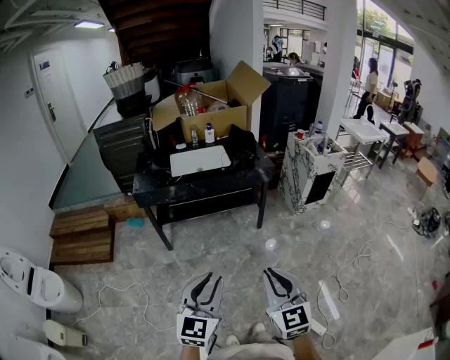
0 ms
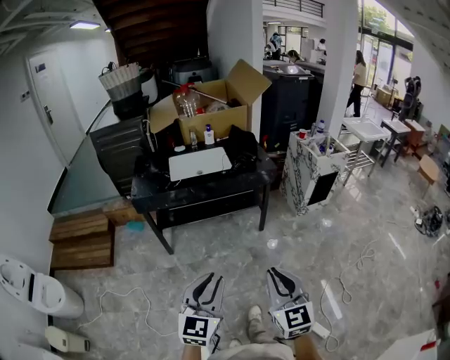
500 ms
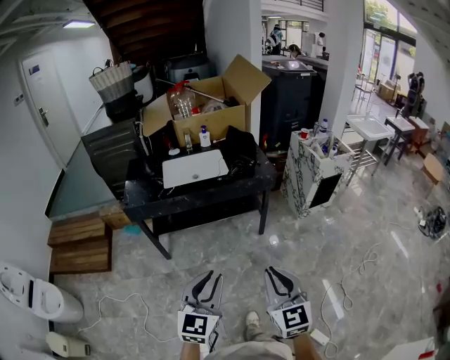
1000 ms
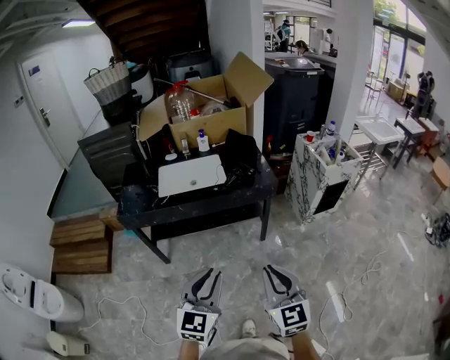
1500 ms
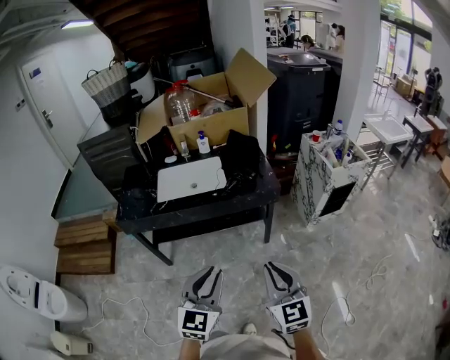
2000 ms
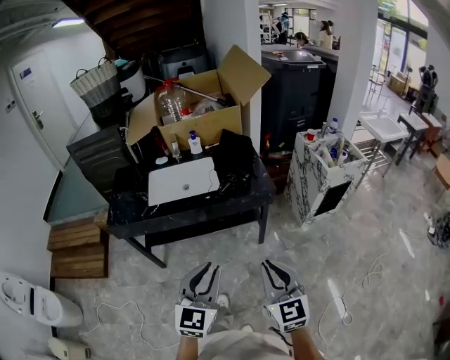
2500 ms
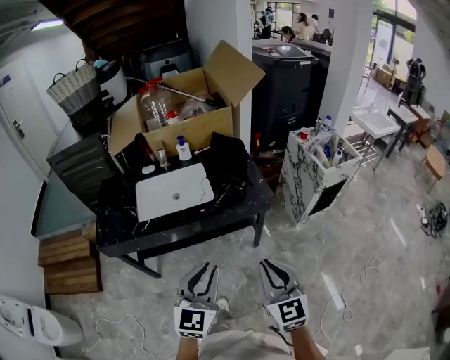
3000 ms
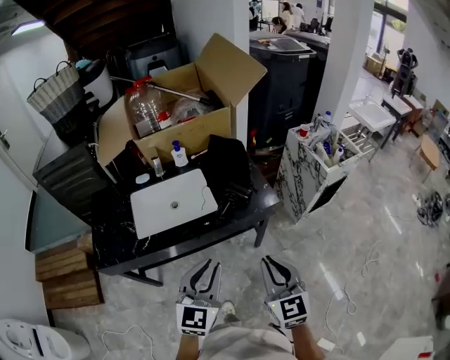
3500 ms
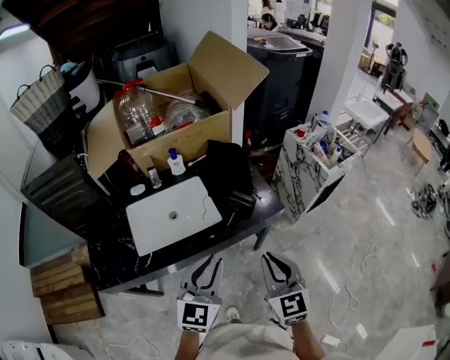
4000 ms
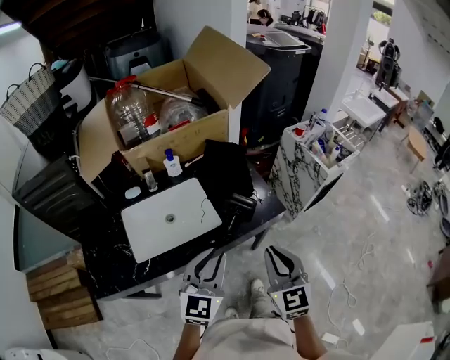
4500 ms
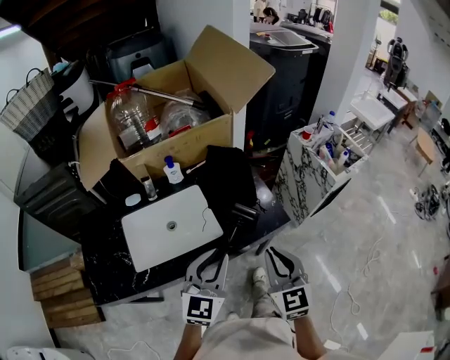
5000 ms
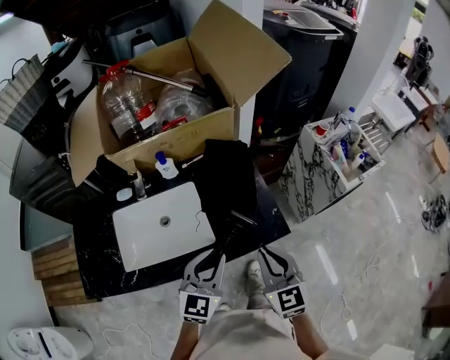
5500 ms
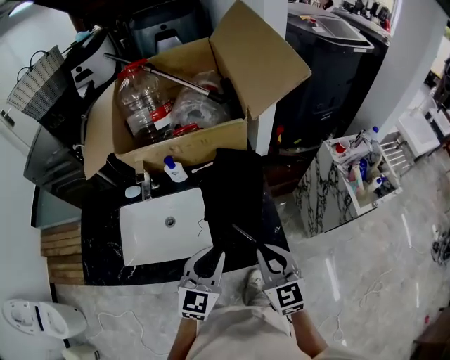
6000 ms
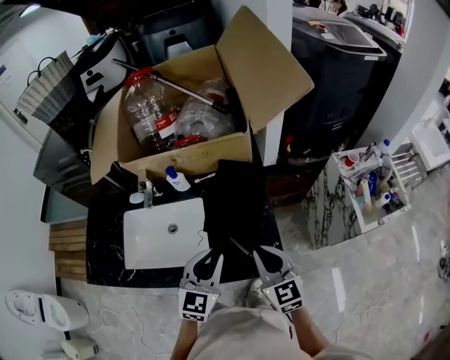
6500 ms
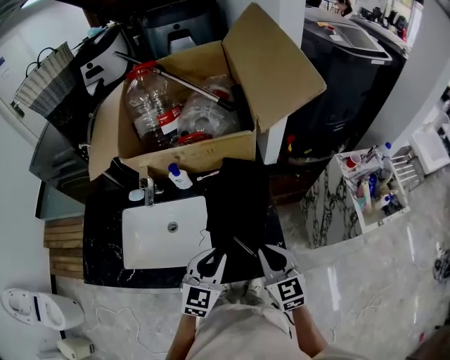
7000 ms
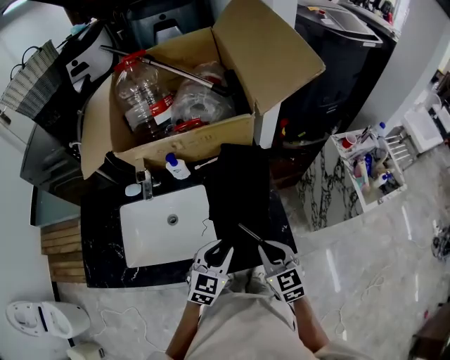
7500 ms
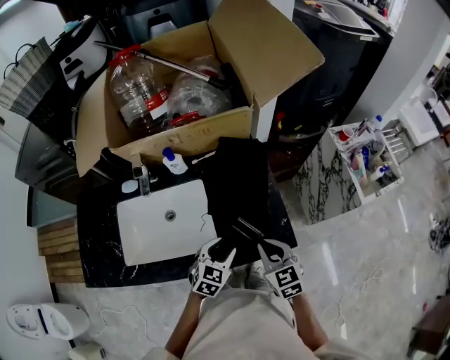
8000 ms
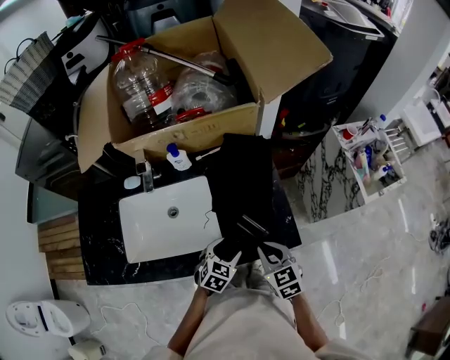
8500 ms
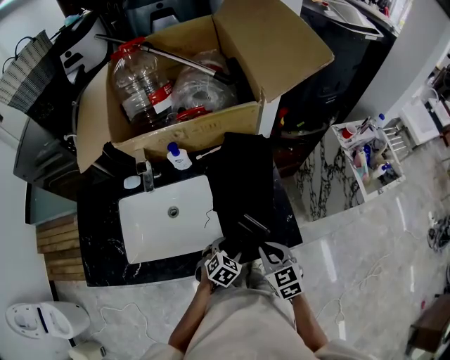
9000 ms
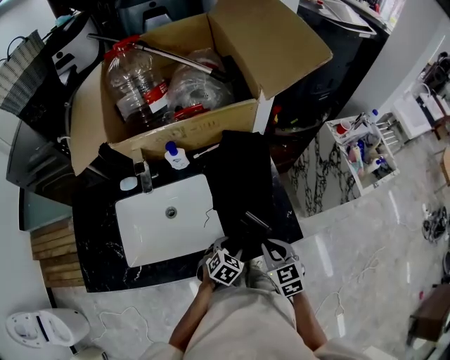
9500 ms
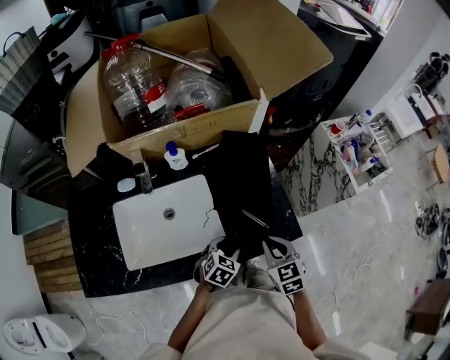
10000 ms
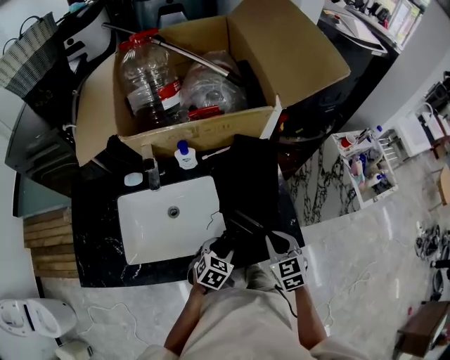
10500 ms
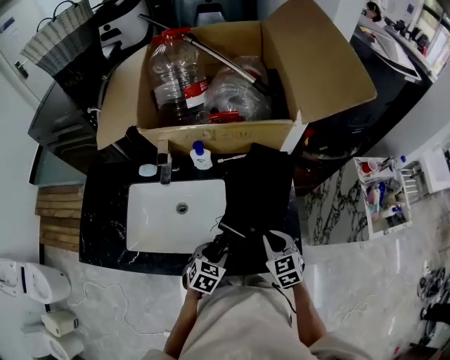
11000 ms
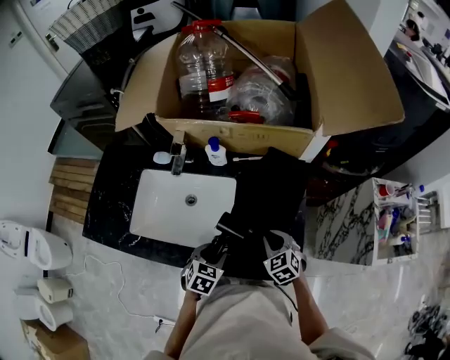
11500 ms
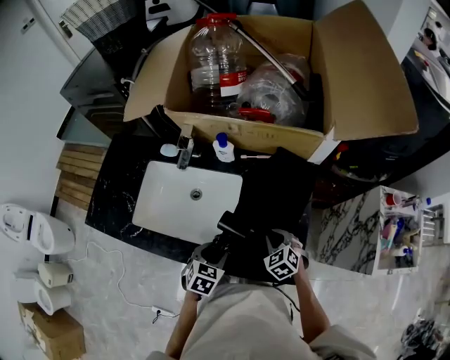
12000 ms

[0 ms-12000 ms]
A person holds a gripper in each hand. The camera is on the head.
0 ms to 2000 ms: The two grippers go roughly 30 cm forward.
2000 ms to 4000 ms: Both grippers move forward, about 30 cm.
4000 ms to 6000 ms: Both grippers move forward, about 25 cm.
6000 ms to 8000 ms: The right gripper travels downward by roughly 10 cm; the left gripper shifts some 15 cm downward, rotates some 30 degrees, and opens.
8000 ms to 10000 ms: The left gripper is displaced downward by some 5 cm.
10000 ms to 12000 ms: The right gripper ends up roughly 15 cm from where it was, and swivels approximately 50 degrees; the left gripper changes its angle by approximately 40 degrees.

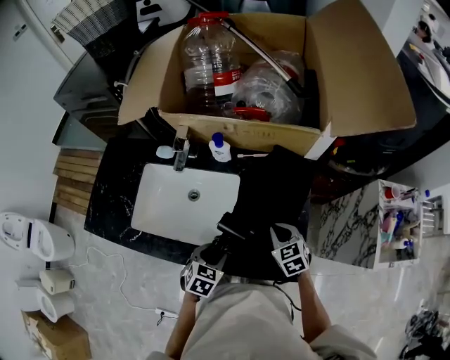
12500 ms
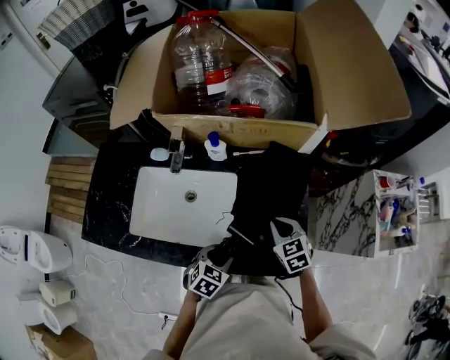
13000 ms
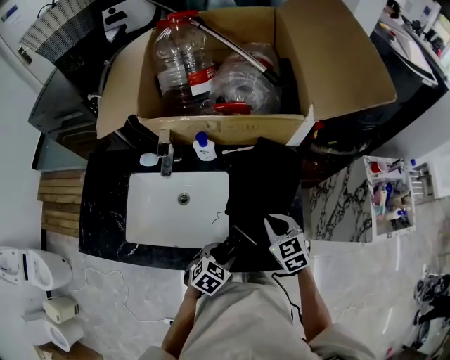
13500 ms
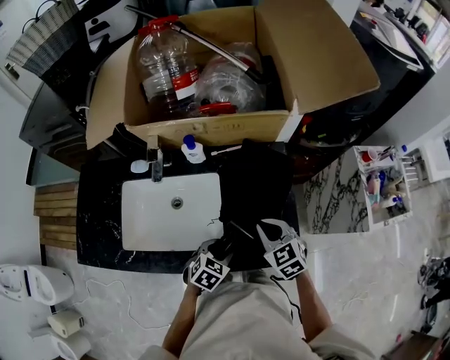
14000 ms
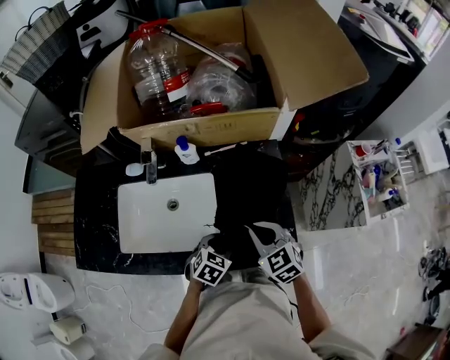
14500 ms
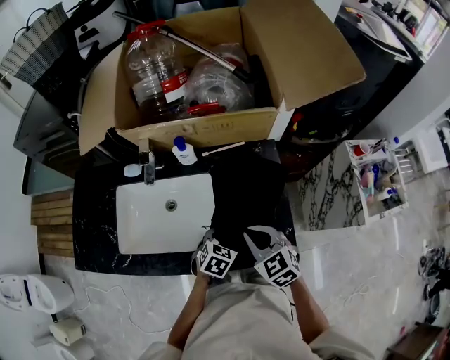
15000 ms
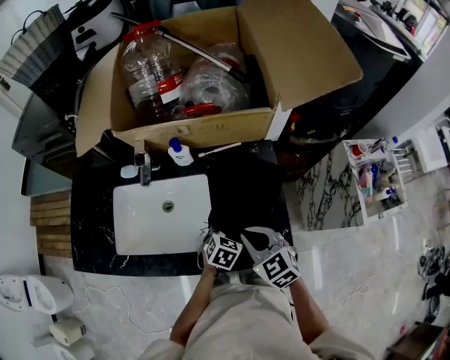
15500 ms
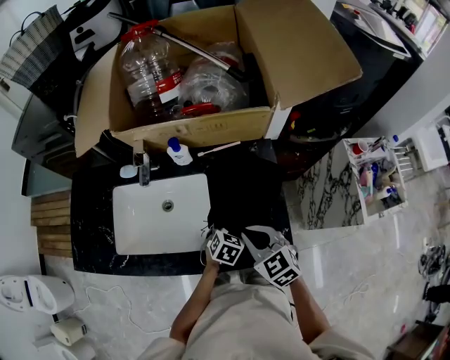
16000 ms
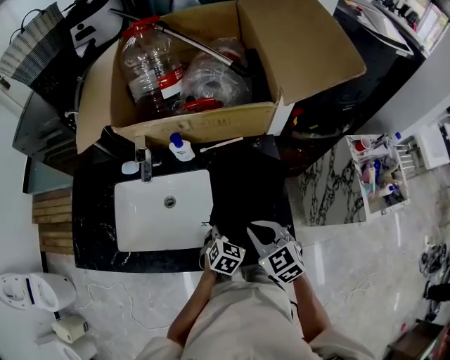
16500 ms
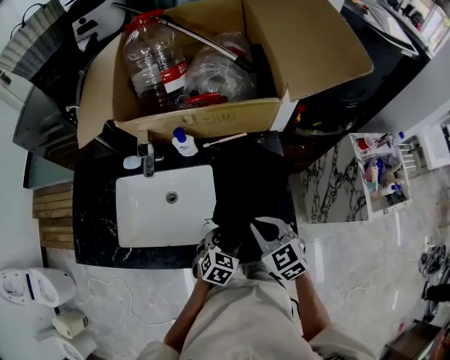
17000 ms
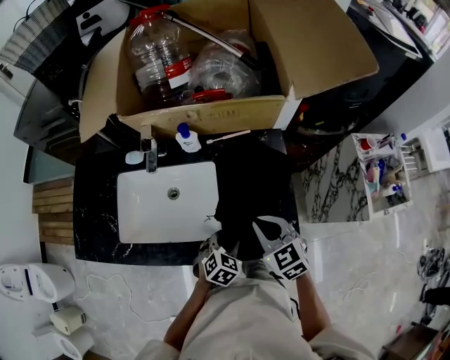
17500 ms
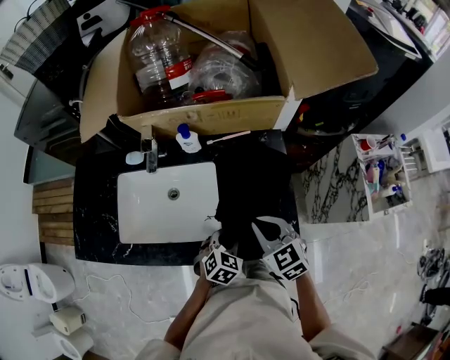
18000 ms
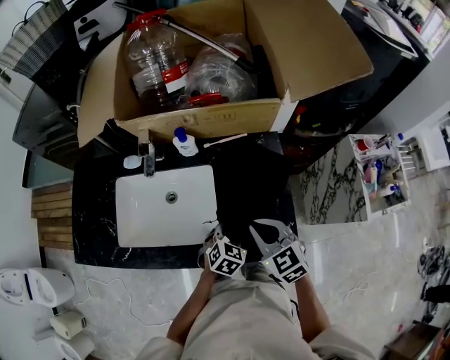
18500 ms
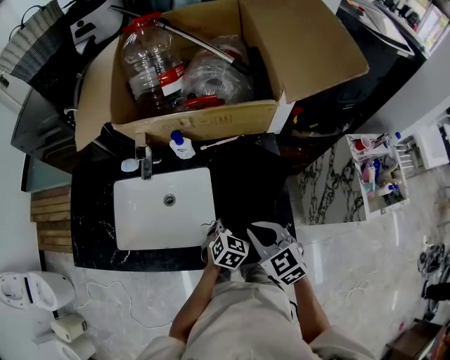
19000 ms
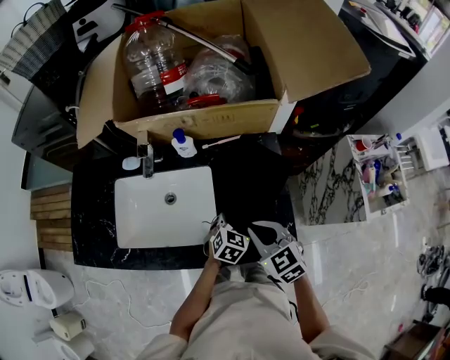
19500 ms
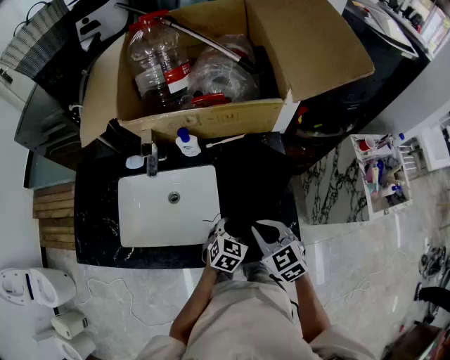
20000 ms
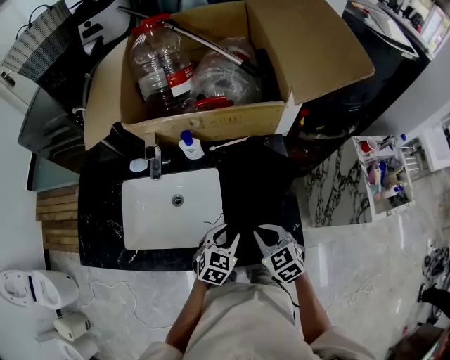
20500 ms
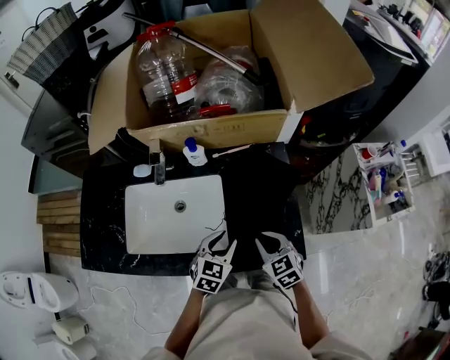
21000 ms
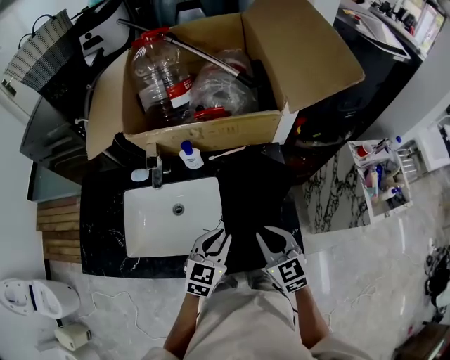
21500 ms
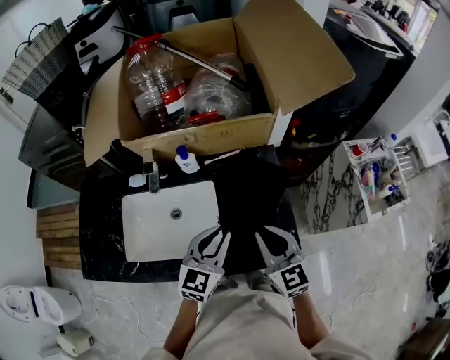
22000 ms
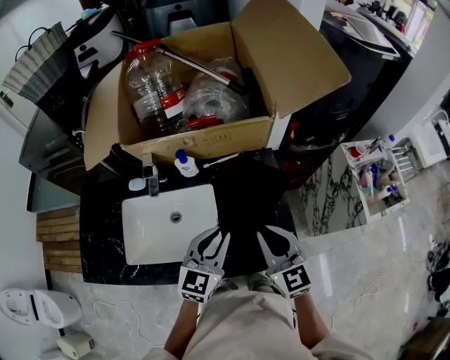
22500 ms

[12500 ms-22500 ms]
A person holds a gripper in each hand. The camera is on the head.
12500 ms to 14500 ms: The right gripper shifts approximately 10 cm upward and backward; the left gripper shifts by roughly 5 cm, and turns by about 20 degrees.
14500 ms to 16500 ms: The left gripper moves to the right, approximately 5 cm.
16500 ms to 18500 ms: The left gripper closes up.
18500 ms to 20500 ms: The right gripper shifts approximately 5 cm downward.
20500 ms to 22500 ms: The two grippers go some 15 cm upward. The right gripper points its fingers roughly 30 degrees further upward; the left gripper turns by about 30 degrees.

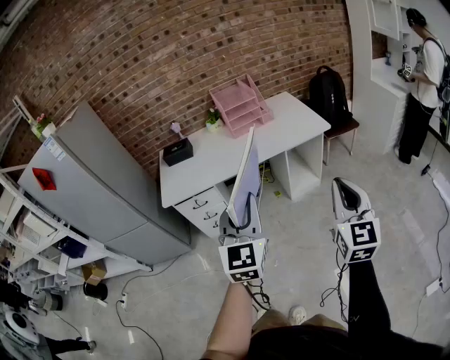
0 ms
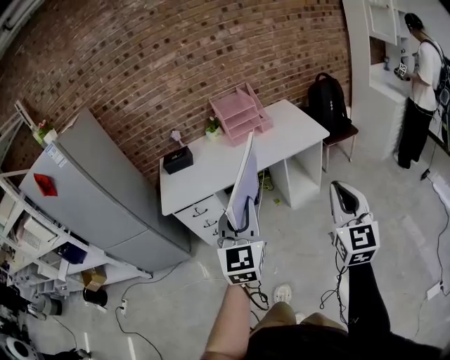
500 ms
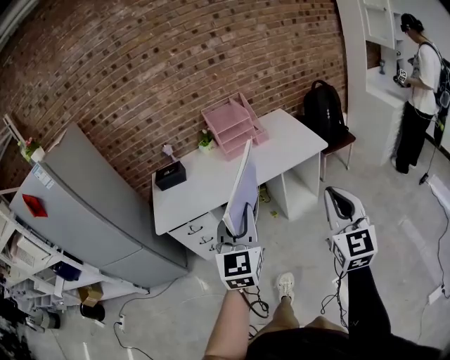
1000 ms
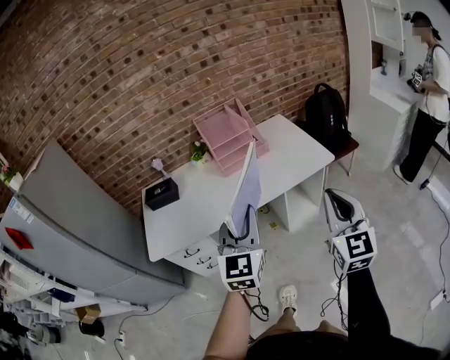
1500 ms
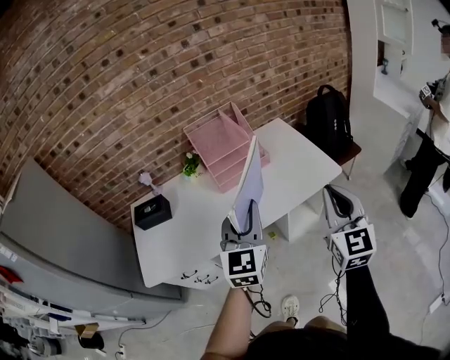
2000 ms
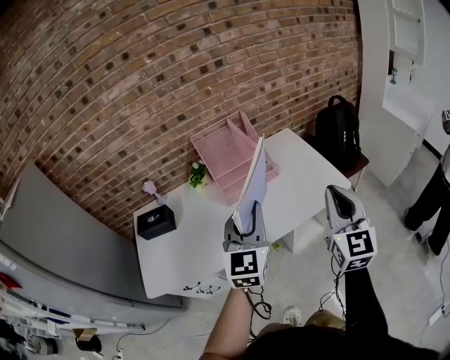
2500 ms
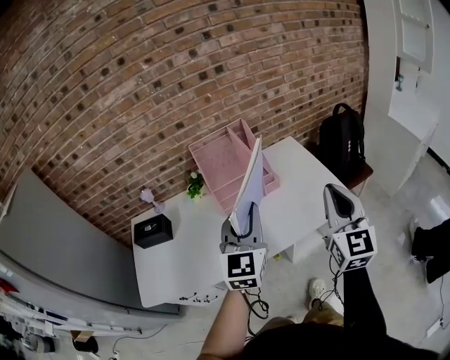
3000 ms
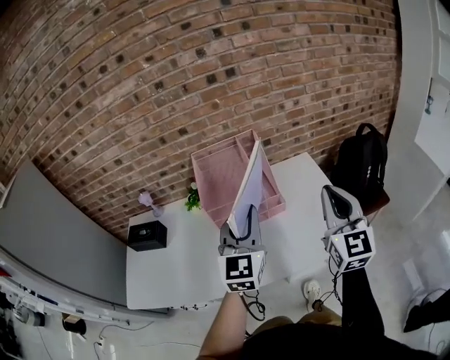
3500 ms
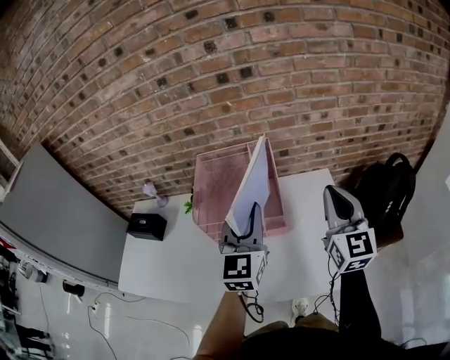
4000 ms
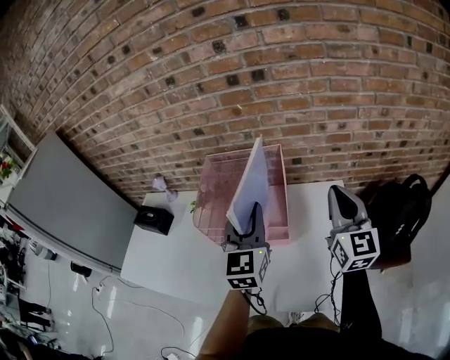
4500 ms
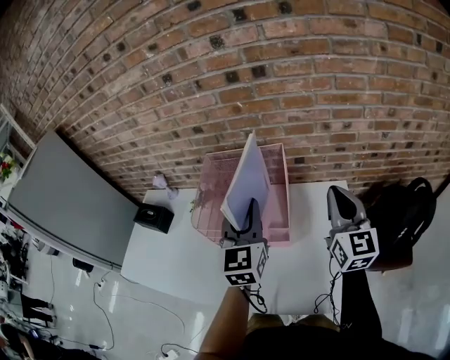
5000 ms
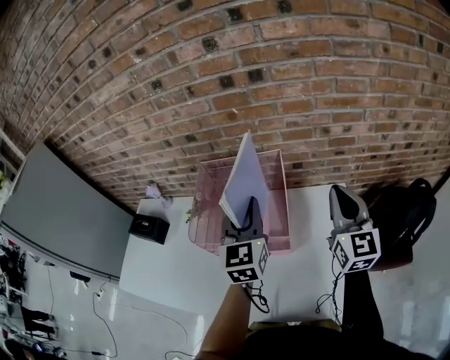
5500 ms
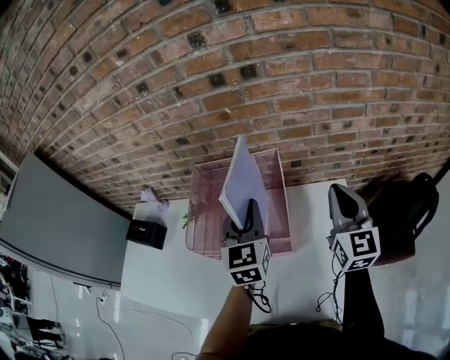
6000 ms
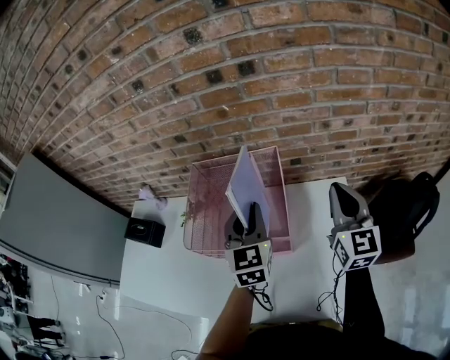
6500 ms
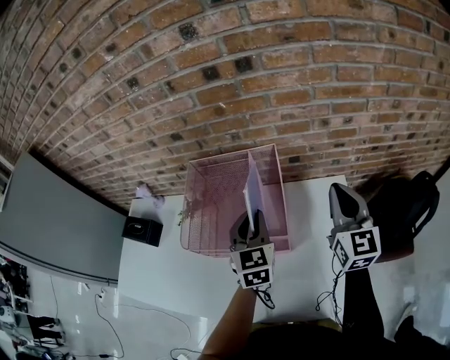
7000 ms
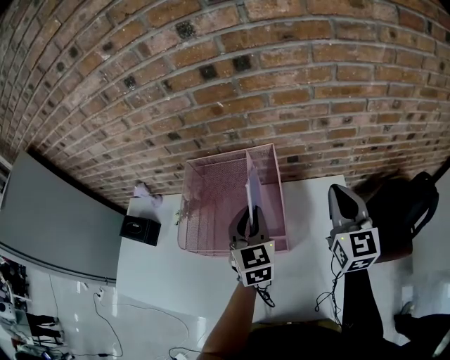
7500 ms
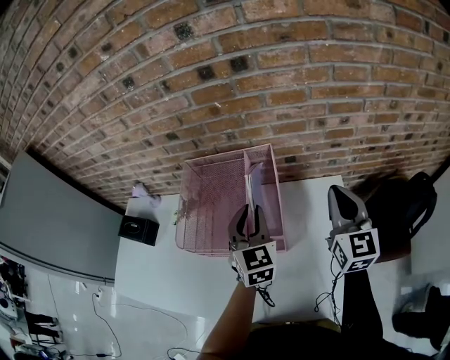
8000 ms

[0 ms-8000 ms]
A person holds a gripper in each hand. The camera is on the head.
0 ms to 2000 ms: The grippers both shift forward by roughly 40 cm.
2000 ms to 4000 ms: The grippers both shift forward by approximately 40 cm. The left gripper rotates about 20 degrees, while the right gripper rotates some 20 degrees.
4000 ms to 6000 ms: Both grippers move forward, roughly 15 cm.
6000 ms to 8000 ms: The left gripper moves downward, some 5 cm.
